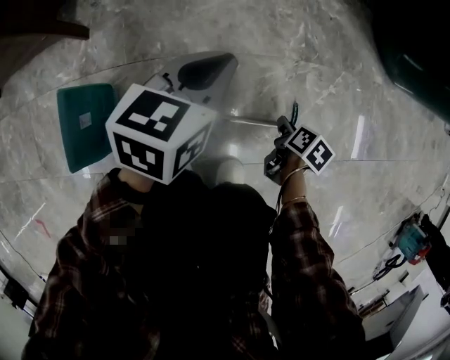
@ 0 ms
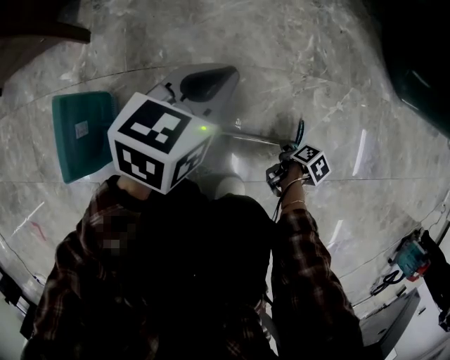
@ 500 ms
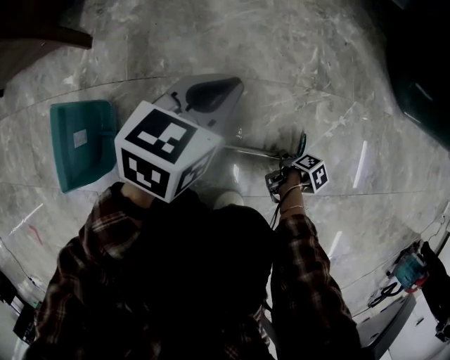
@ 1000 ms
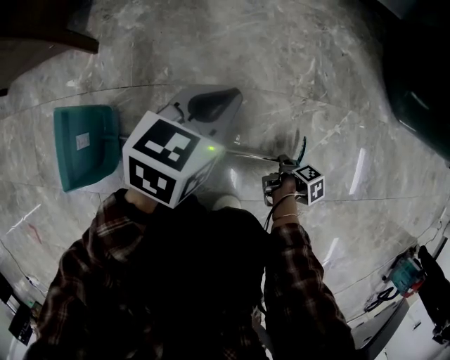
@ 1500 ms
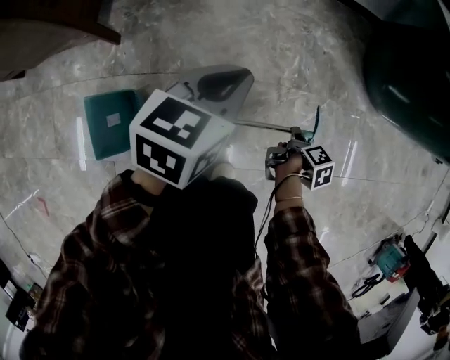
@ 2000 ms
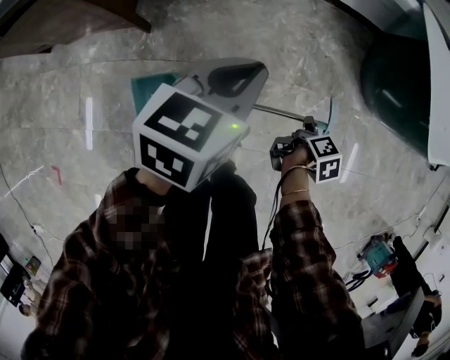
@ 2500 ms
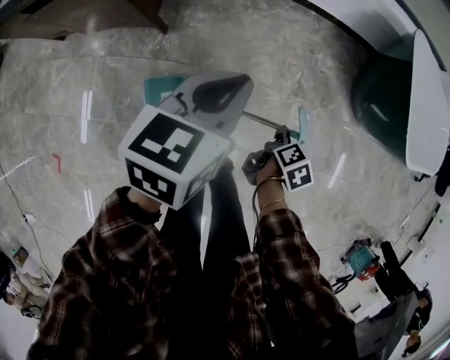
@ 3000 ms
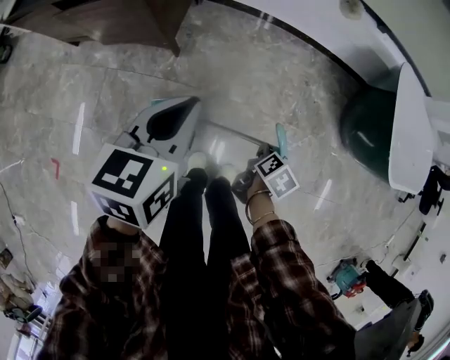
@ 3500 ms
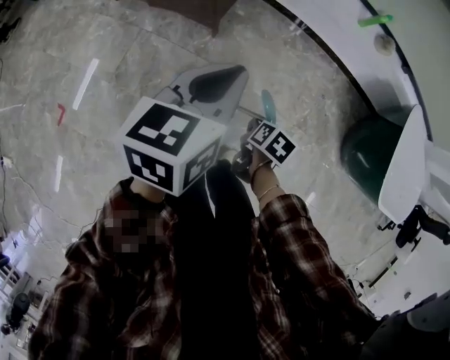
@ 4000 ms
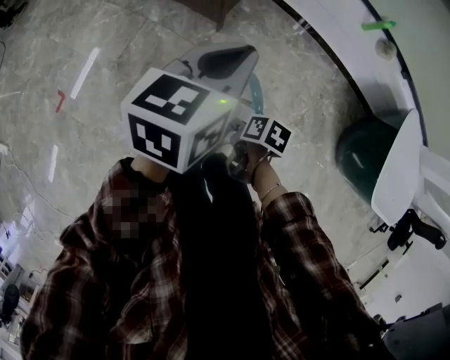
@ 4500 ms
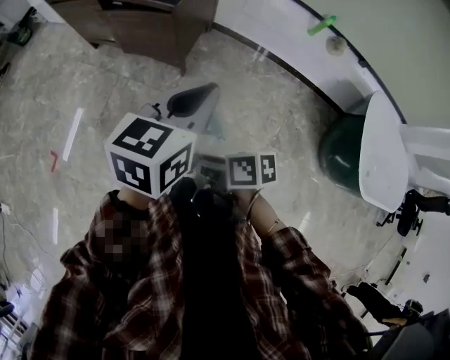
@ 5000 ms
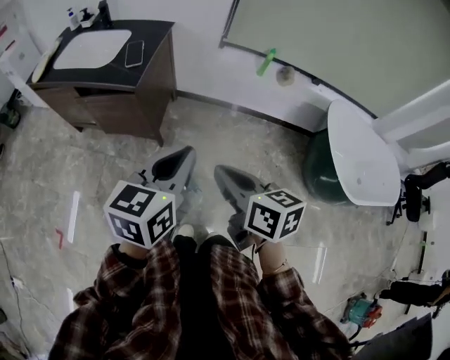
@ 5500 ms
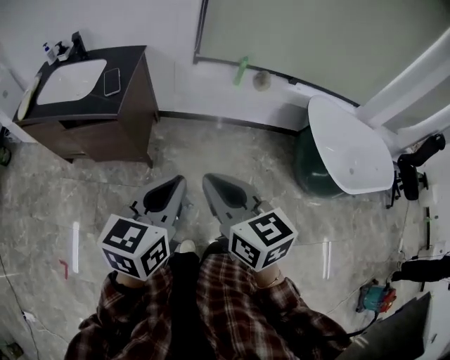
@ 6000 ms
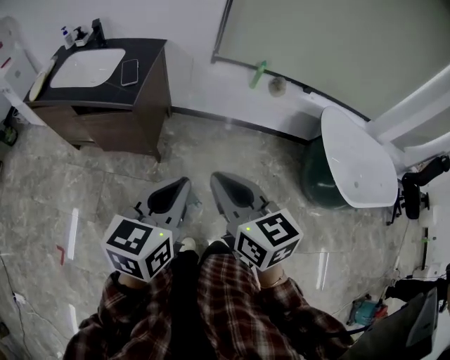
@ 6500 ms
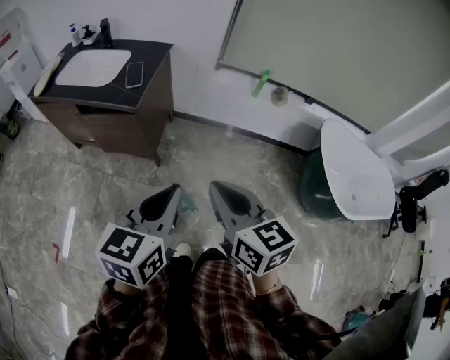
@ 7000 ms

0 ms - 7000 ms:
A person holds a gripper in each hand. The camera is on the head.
0 ms - 2000 ms: The grippers both shift upward by roughly 15 cm. The right gripper rotates some 40 degrees.
2000 ms - 3500 ms: The left gripper goes about 40 cm upward, to the left and backward, and turns by roughly 20 degrees. The right gripper shifts about 35 cm upward and to the left, and rolls counterclockwise, seen from behind, by about 40 degrees.
3500 ms - 5000 ms: The right gripper changes place by roughly 35 cm, and swivels about 70 degrees, while the left gripper heads upward, covering some 15 cm.
5000 ms - 7000 ms: The right gripper shifts roughly 25 cm upward, and swivels about 60 degrees; the left gripper moves approximately 10 cm.

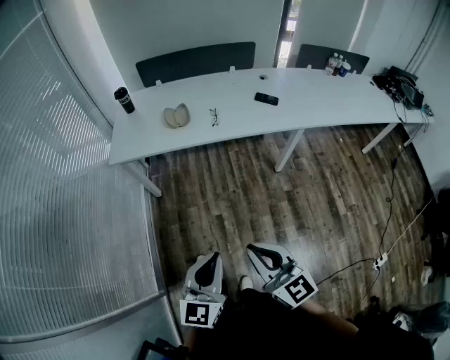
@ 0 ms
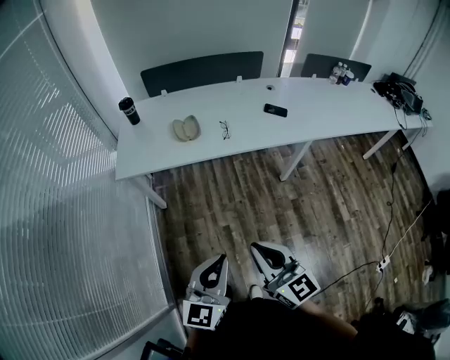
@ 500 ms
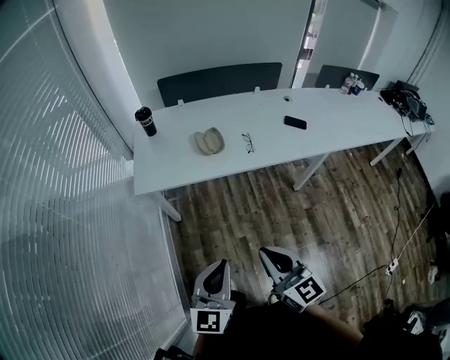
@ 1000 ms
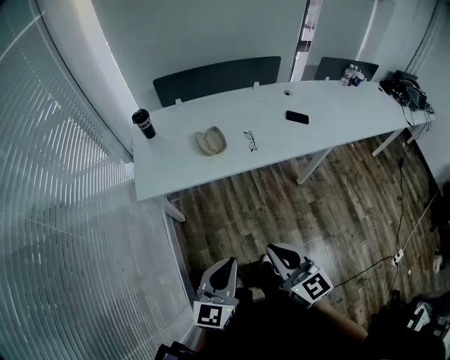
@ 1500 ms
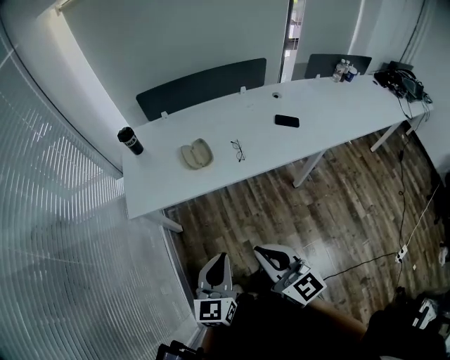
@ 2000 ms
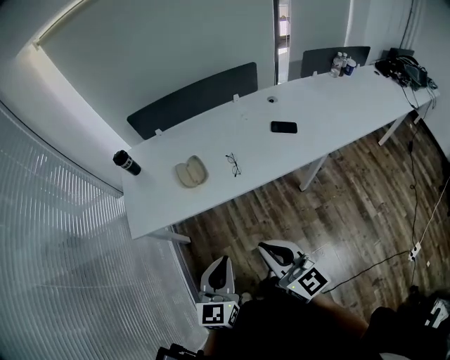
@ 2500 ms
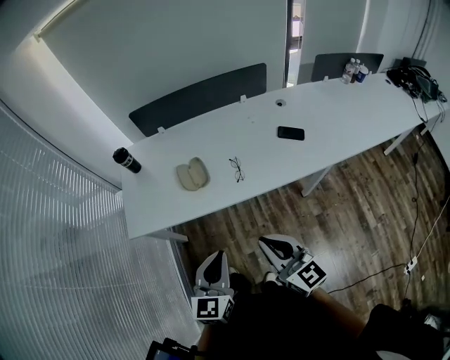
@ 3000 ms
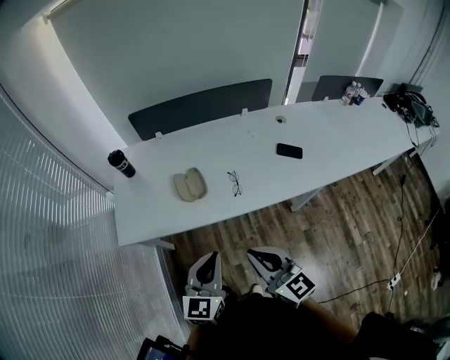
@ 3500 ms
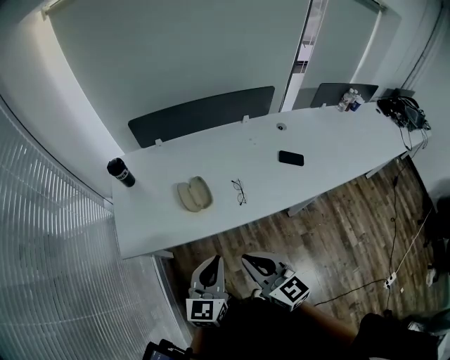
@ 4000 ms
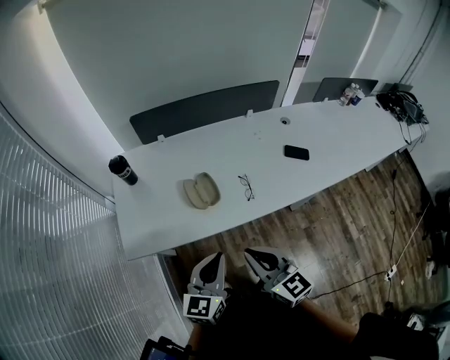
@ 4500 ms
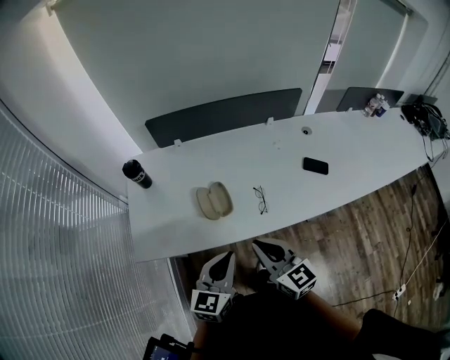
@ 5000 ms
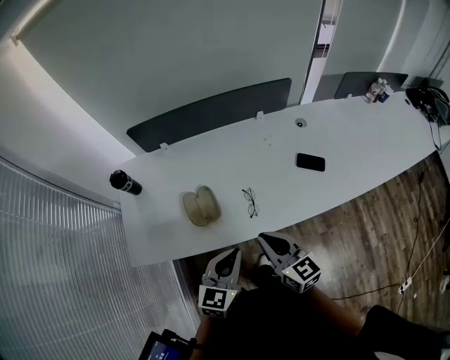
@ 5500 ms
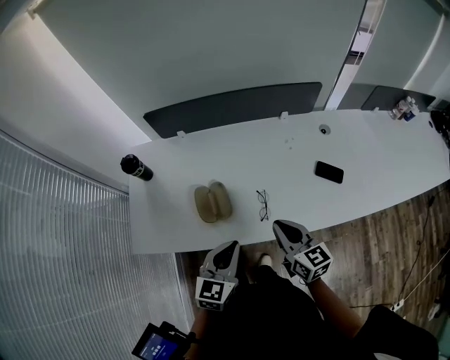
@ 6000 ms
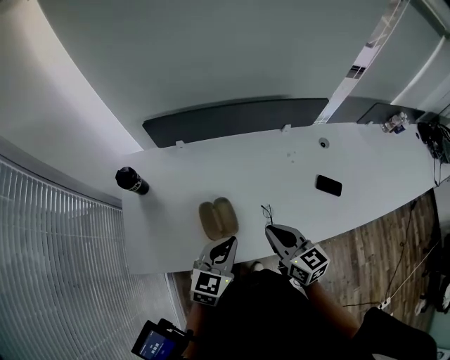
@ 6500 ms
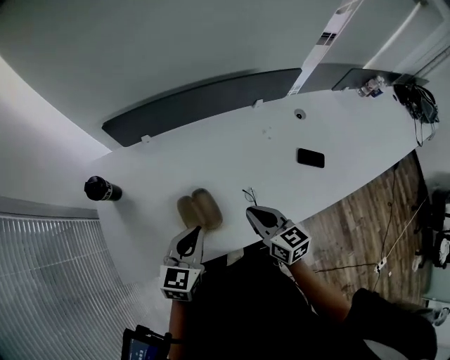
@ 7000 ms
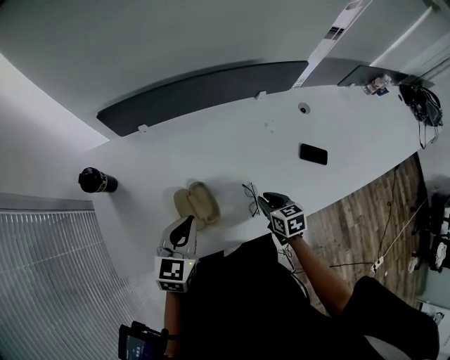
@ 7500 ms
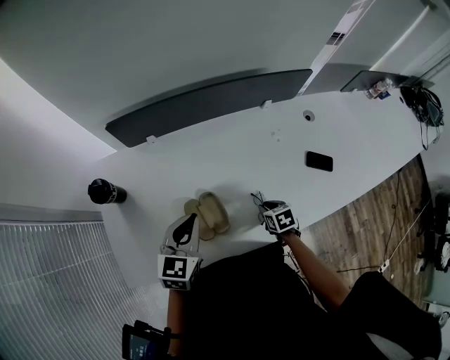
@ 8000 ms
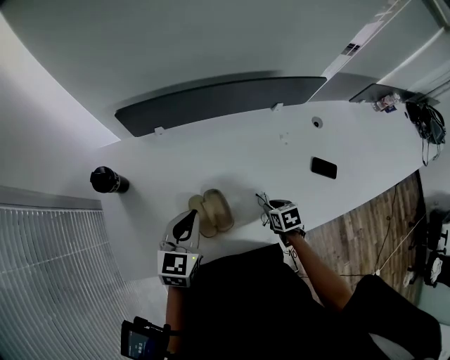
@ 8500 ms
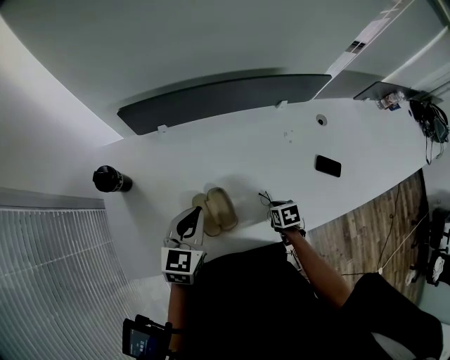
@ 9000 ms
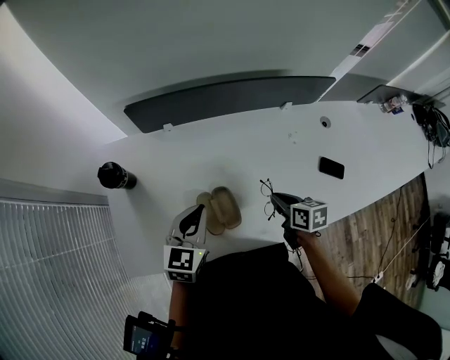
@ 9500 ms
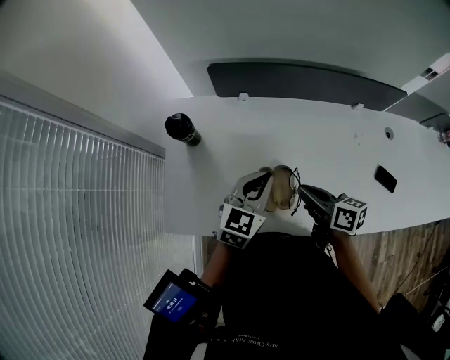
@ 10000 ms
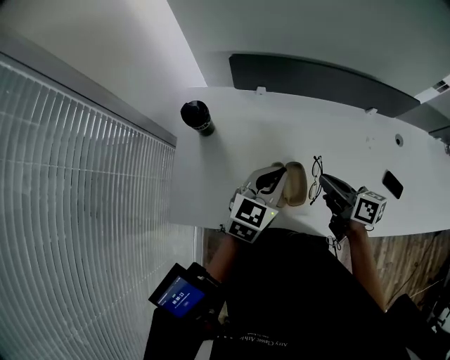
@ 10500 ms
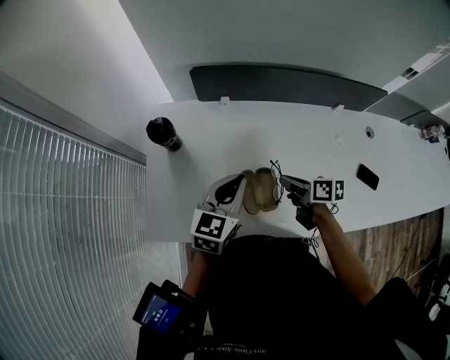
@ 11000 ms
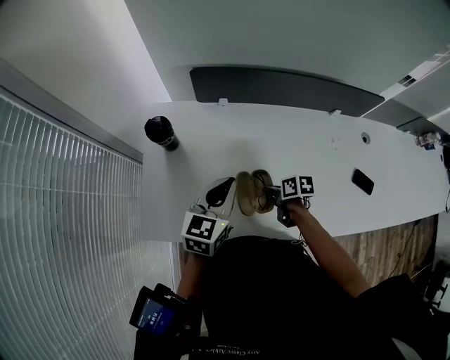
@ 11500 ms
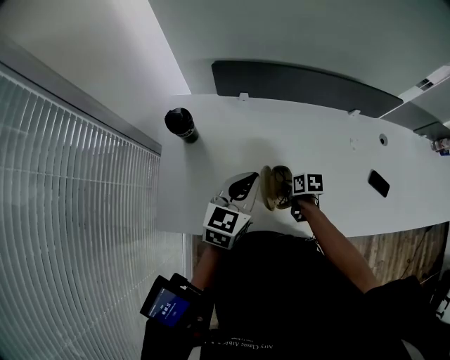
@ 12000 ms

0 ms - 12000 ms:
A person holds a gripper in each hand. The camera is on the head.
0 ms - 2000 ms: Both grippers move forward and to the left, some 25 cm.
2000 ms - 4000 ms: The two grippers go some 20 cm forward.
4000 ms - 6000 ms: The left gripper moves forward and to the right, approximately 15 cm, while the right gripper travels forward and to the right by roughly 25 cm.
6000 ms - 8000 ms: The right gripper goes some 25 cm downward and forward, tilts its fingers roughly 50 degrees downward, and opens its fingers; the left gripper shifts roughly 20 cm forward and to the left.
8000 ms - 10000 ms: The right gripper shifts about 25 cm upward and to the left, tilts its fingers approximately 40 degrees upward, and closes up.
10000 ms - 12000 ms: The right gripper heads downward, covering about 20 cm, and tips its fingers downward by roughly 40 degrees.

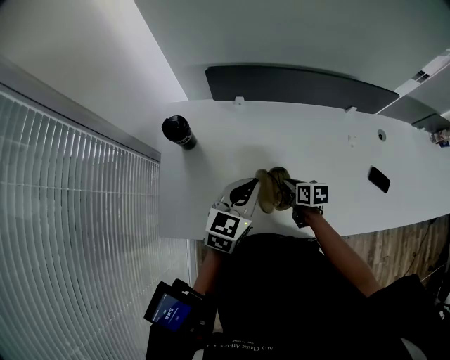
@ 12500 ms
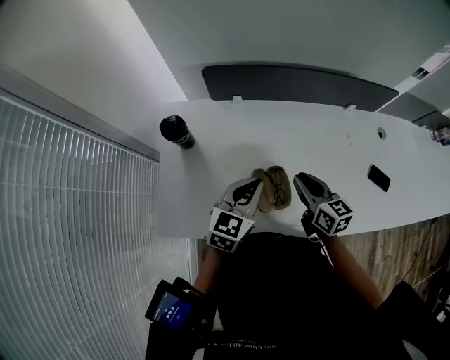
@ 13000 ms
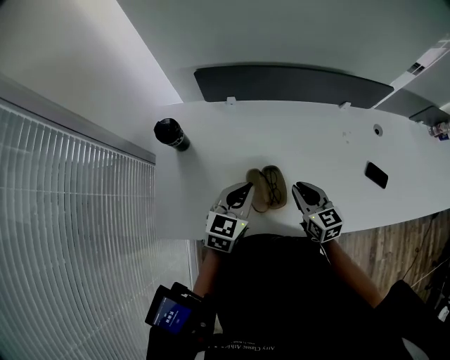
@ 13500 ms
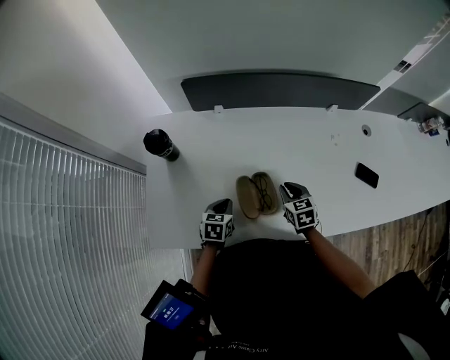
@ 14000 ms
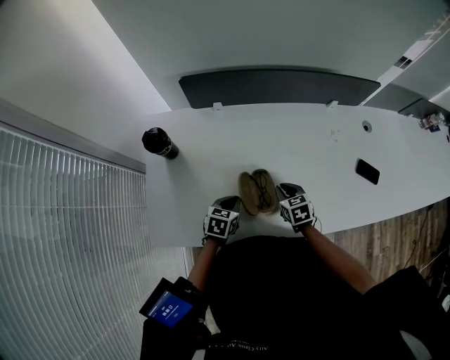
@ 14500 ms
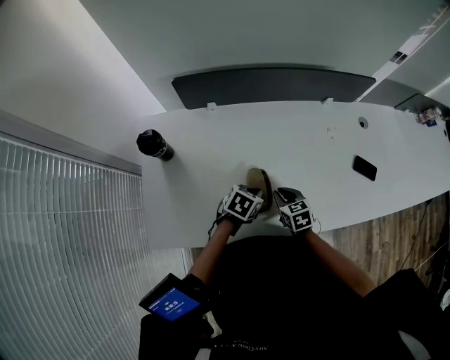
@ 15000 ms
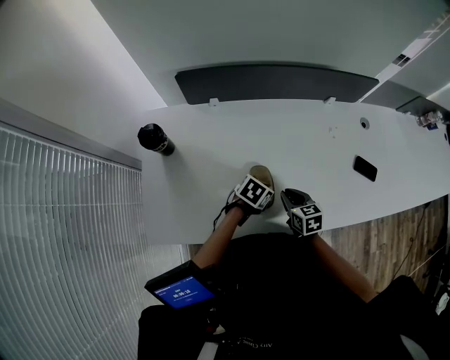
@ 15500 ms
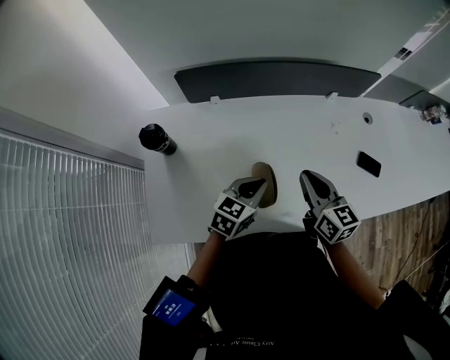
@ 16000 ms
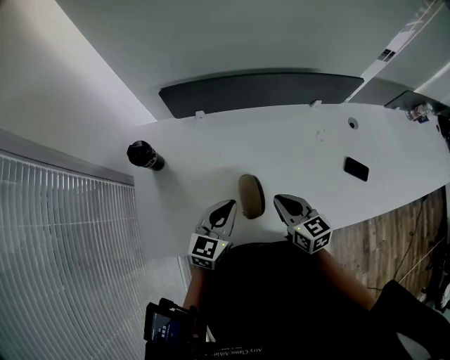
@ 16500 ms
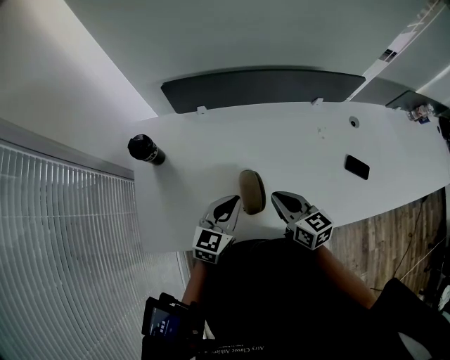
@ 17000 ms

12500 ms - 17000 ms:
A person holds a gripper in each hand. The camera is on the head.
12500 ms - 14500 ms: The right gripper travels upward and back again, roughly 15 cm each way, and swivels about 30 degrees. Meanwhile the left gripper goes about 20 cm downward, and turns by roughly 30 degrees.
14500 ms - 17000 ms: The two grippers go about 15 cm upward. The right gripper turns by some 30 degrees, while the left gripper turns by approximately 30 degrees.

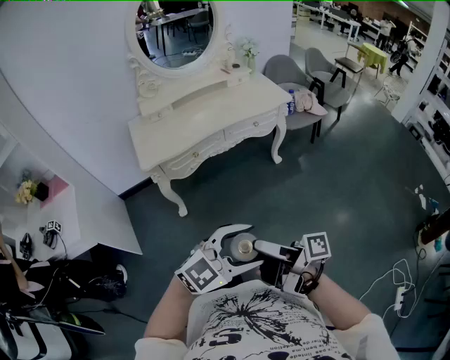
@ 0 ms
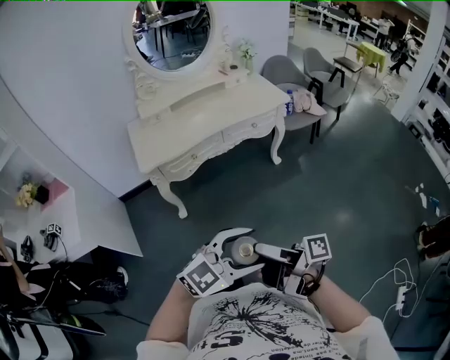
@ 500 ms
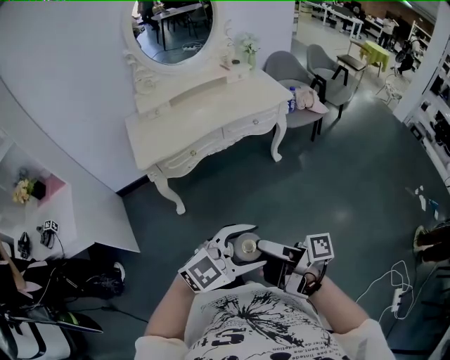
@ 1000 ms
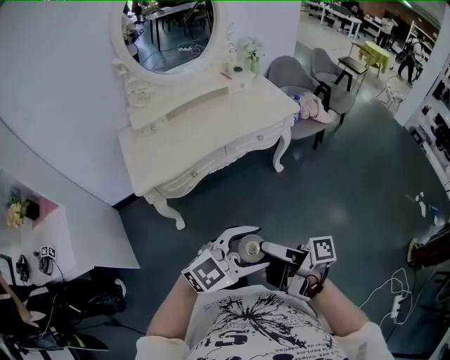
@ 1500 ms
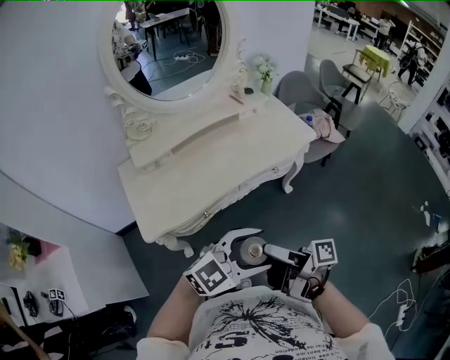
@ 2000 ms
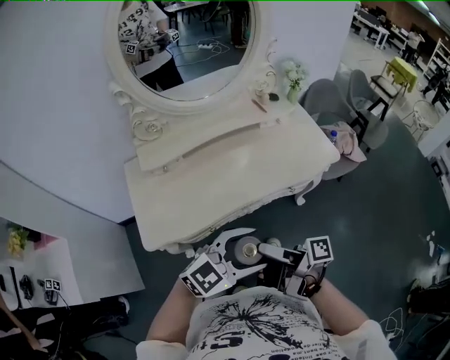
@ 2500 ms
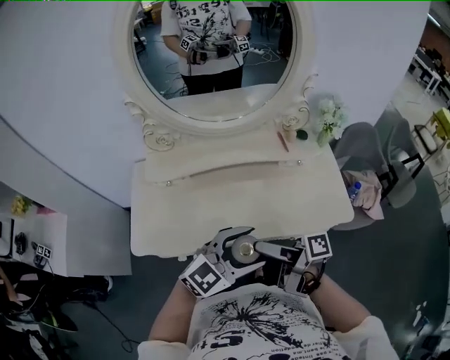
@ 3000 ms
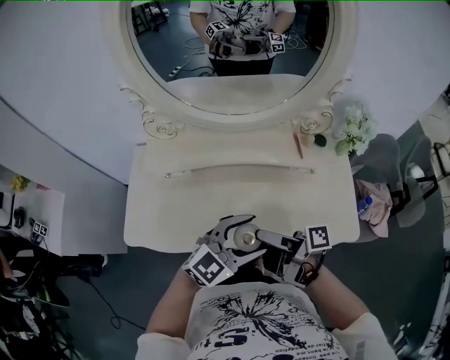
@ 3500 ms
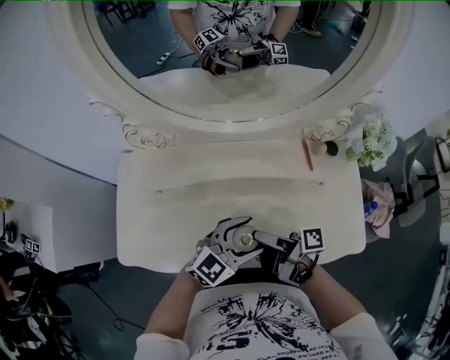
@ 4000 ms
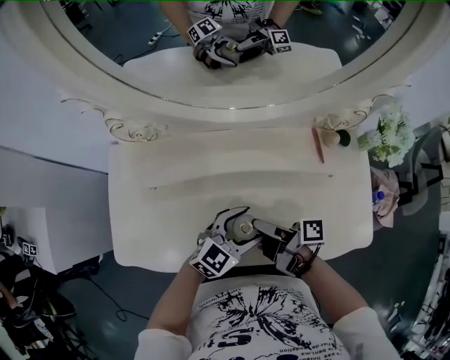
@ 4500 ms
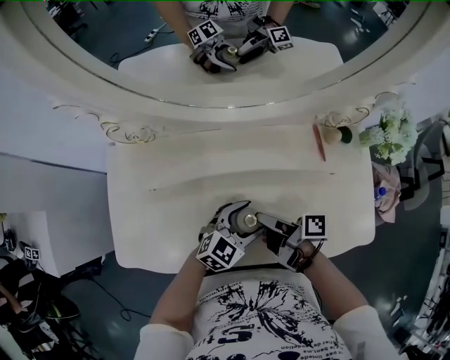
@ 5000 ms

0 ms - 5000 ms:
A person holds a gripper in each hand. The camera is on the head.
0 ms - 2500 ms: The left gripper shifts by roughly 50 cm.
2500 ms - 5000 ms: The left gripper changes place by some 40 cm, and rotates some 40 degrees.
